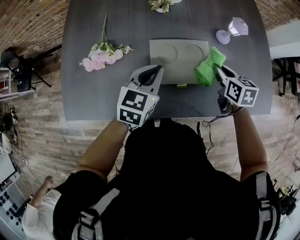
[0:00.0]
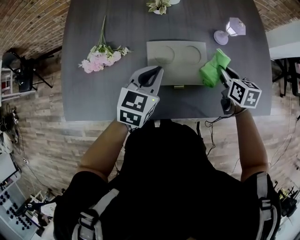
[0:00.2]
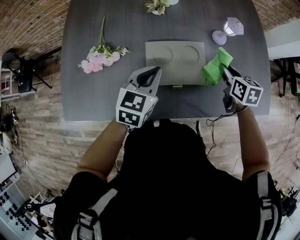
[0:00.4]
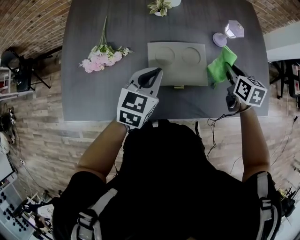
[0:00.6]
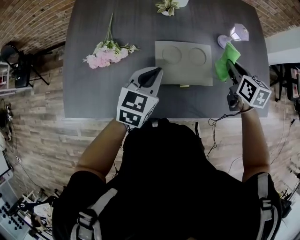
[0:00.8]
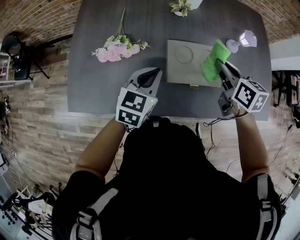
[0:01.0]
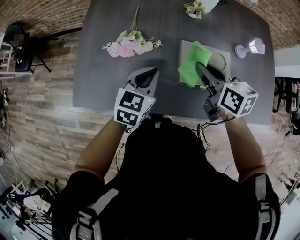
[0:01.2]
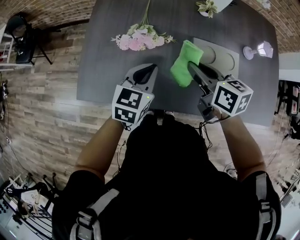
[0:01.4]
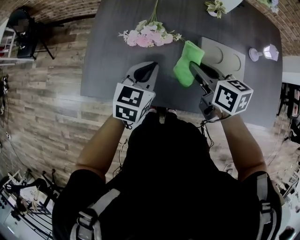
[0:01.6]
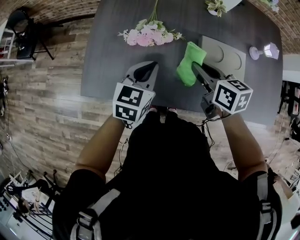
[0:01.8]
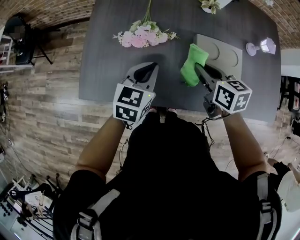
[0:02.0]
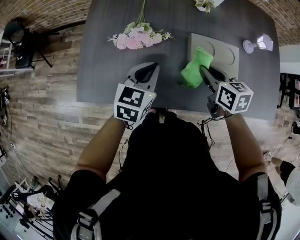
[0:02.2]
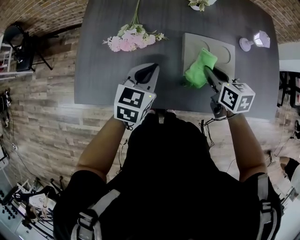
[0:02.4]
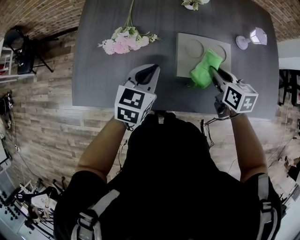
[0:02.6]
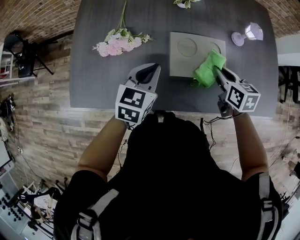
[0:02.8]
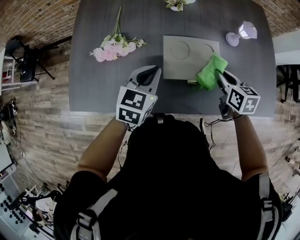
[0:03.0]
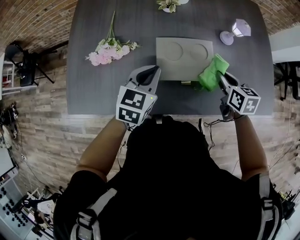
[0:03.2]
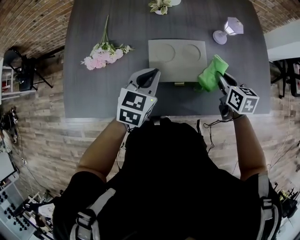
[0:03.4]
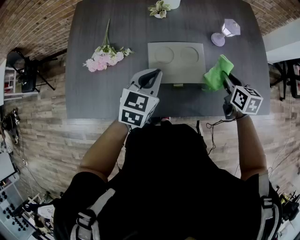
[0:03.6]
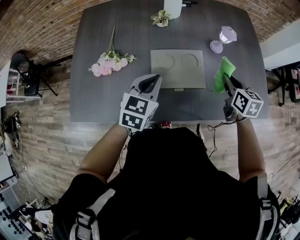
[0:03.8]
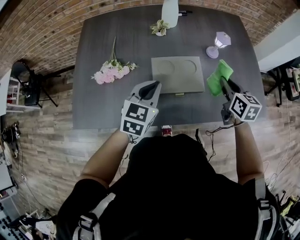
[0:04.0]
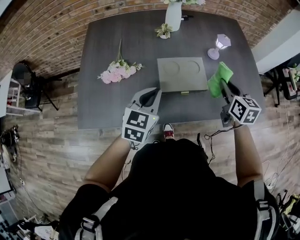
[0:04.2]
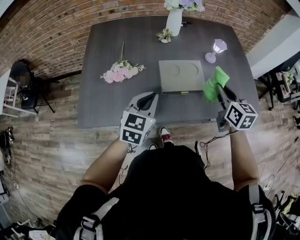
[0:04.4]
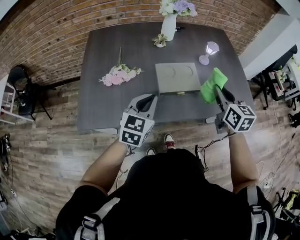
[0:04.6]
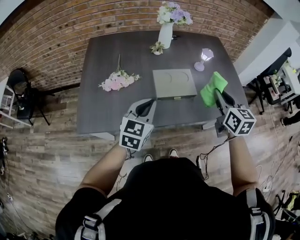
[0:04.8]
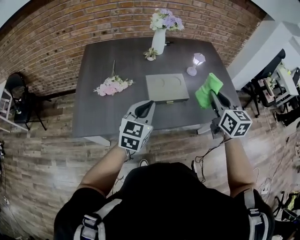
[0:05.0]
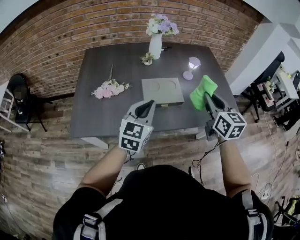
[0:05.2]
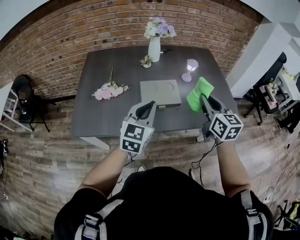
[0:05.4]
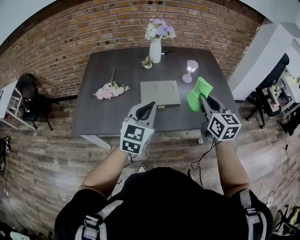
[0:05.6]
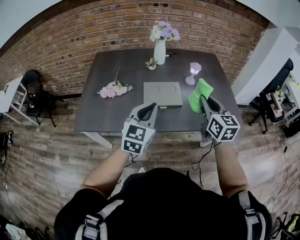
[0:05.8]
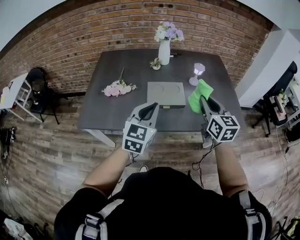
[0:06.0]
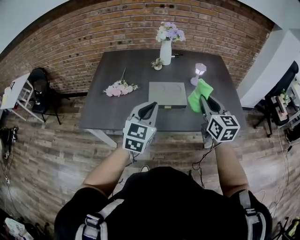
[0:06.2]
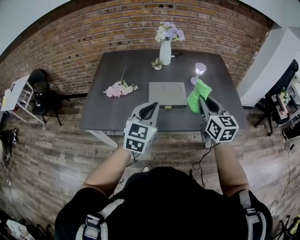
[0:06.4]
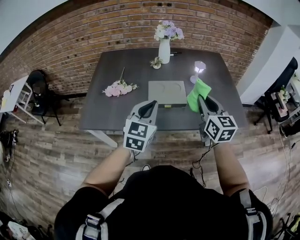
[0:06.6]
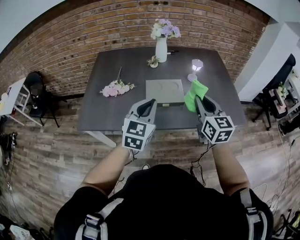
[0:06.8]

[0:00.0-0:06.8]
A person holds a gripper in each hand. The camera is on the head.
0:00.0 to 0:01.4: The left gripper moves to the left, some 15 cm, while the right gripper heads to the left, covering approximately 30 cm, and turns by roughly 20 degrees.
0:01.4 to 0:02.8: The right gripper moves to the right, about 20 cm. Meanwhile the left gripper heads to the right, covering some 10 cm.
0:02.8 to 0:04.0: The right gripper is displaced to the right and upward by roughly 15 cm. Meanwhile the left gripper travels to the right and upward by some 10 cm.
0:04.0 to 0:05.4: The left gripper moves backward and upward, approximately 15 cm, while the right gripper is displaced upward and backward by approximately 20 cm.
0:05.4 to 0:06.8: There are only small adjustments of the grippers.

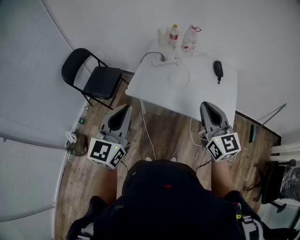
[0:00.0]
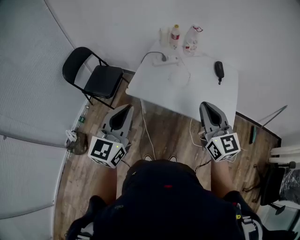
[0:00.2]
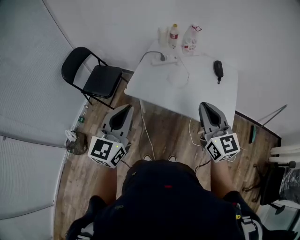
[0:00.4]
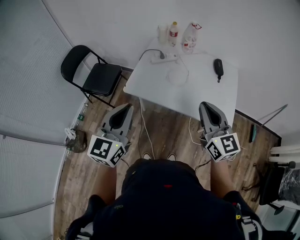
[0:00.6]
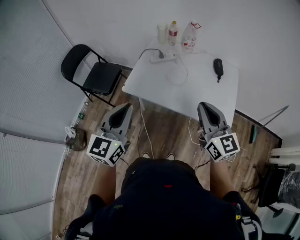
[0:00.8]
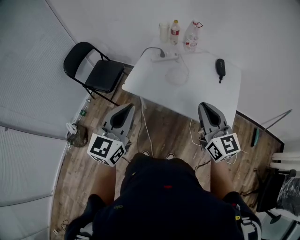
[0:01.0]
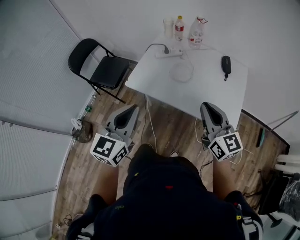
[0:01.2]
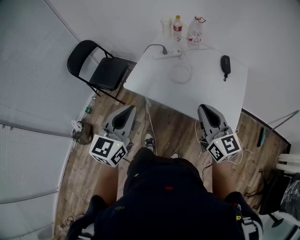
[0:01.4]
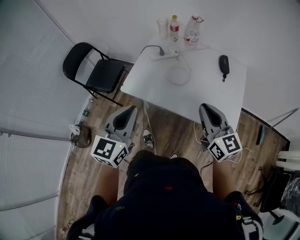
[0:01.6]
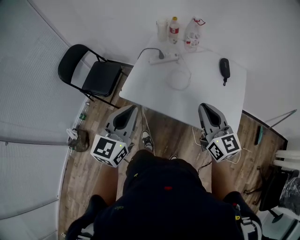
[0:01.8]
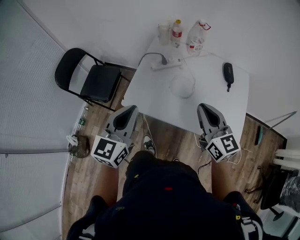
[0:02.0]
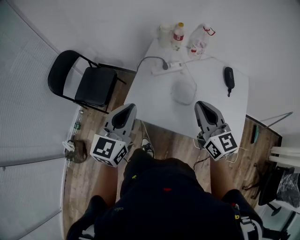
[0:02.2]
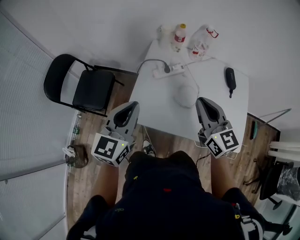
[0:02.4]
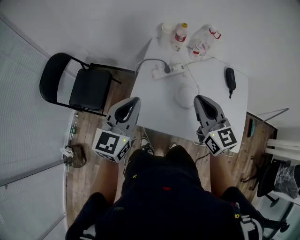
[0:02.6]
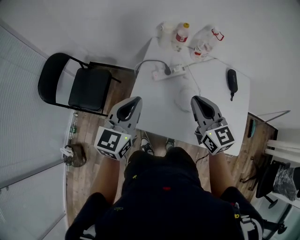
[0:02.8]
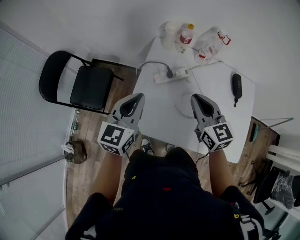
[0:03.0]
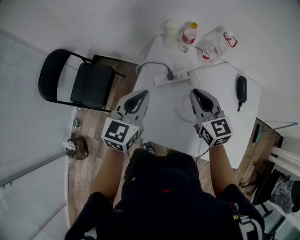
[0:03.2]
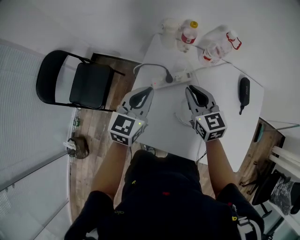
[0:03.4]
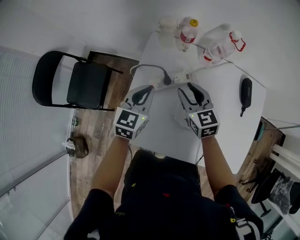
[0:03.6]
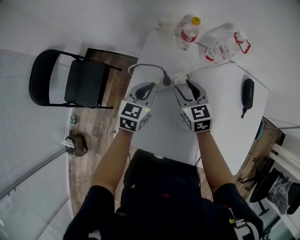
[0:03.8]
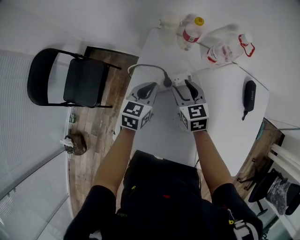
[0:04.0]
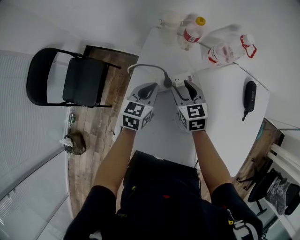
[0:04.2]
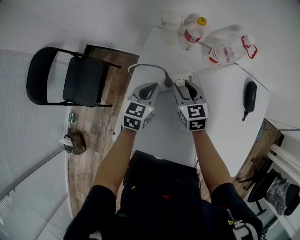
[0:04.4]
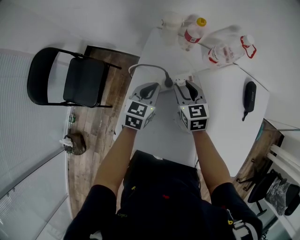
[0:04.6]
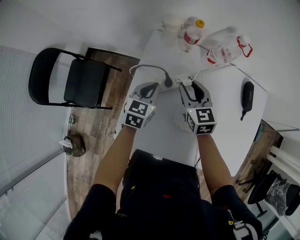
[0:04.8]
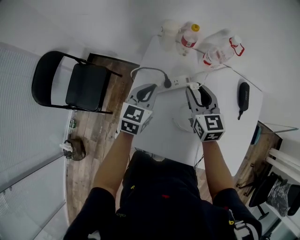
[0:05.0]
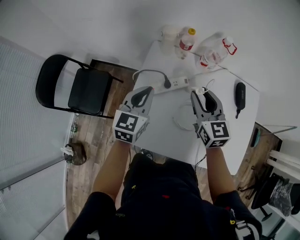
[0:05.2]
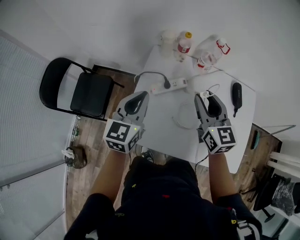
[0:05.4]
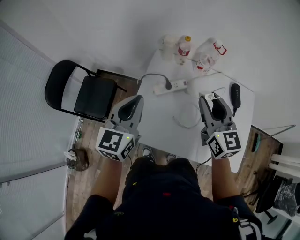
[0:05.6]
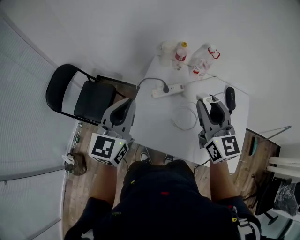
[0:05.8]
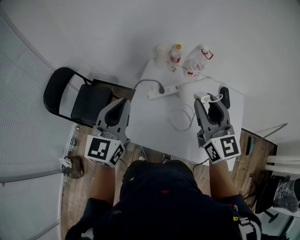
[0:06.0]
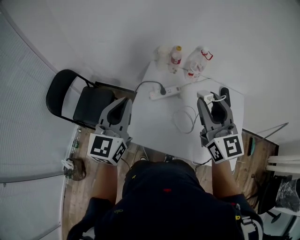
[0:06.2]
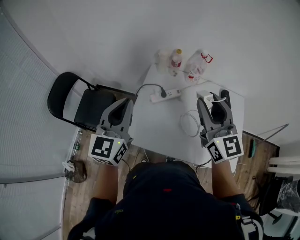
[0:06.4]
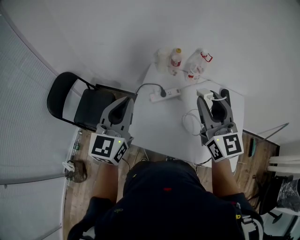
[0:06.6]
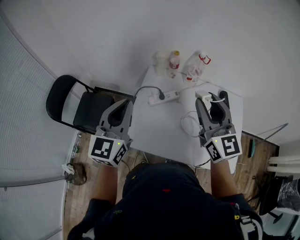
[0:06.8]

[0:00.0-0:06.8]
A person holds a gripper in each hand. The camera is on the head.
0:00.0 to 0:01.4: The right gripper is displaced to the right and downward by some 10 cm; the left gripper travels to the right by approximately 10 cm.
0:01.4 to 0:02.8: The right gripper is displaced forward and to the left by approximately 30 cm, while the left gripper heads forward, covering roughly 30 cm.
0:02.8 to 0:04.0: The grippers both shift downward and forward by approximately 30 cm. The left gripper swivels roughly 20 degrees; the right gripper turns by approximately 20 degrees, and opens its fingers.
0:04.0 to 0:05.4: Both grippers travel together upward and backward, some 25 cm. The right gripper changes its angle by roughly 20 degrees.
0:05.4 to 0:06.8: The two grippers go some 15 cm upward and backward.

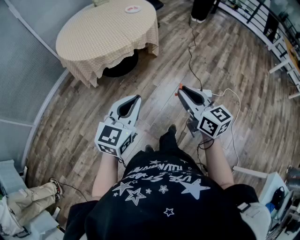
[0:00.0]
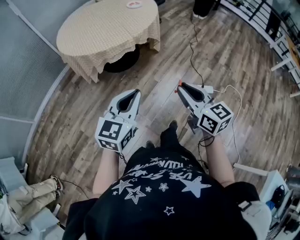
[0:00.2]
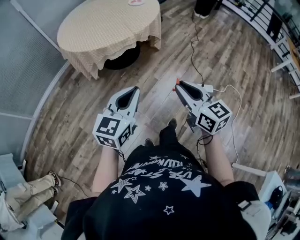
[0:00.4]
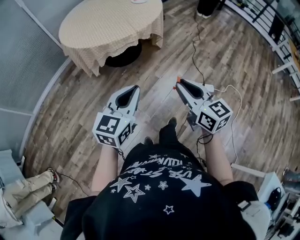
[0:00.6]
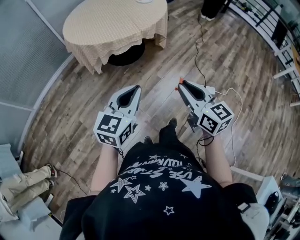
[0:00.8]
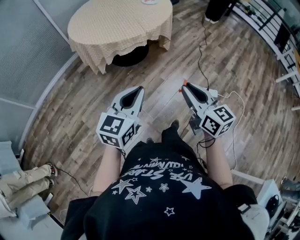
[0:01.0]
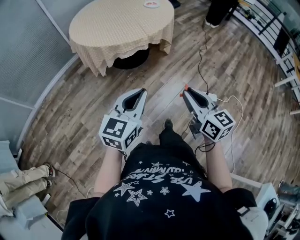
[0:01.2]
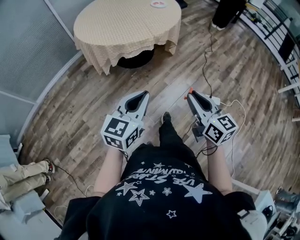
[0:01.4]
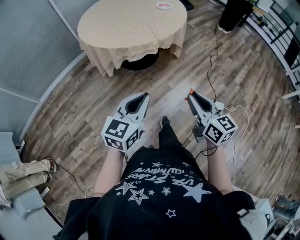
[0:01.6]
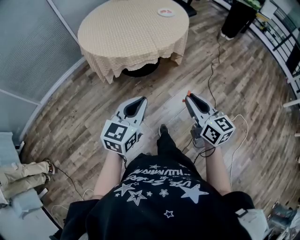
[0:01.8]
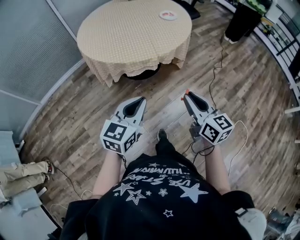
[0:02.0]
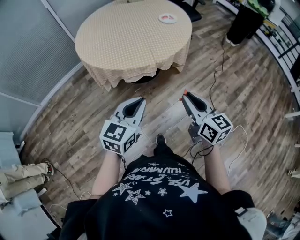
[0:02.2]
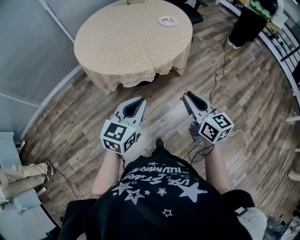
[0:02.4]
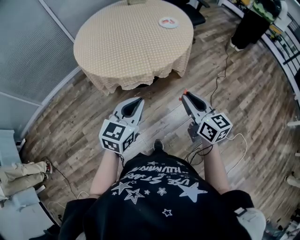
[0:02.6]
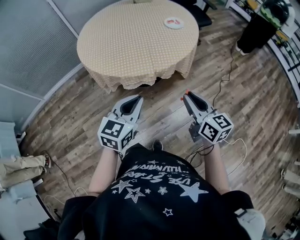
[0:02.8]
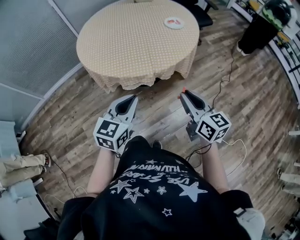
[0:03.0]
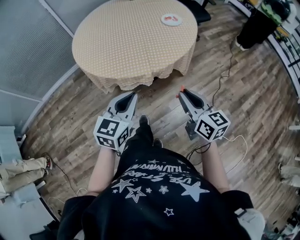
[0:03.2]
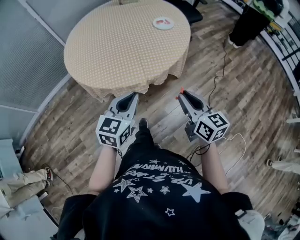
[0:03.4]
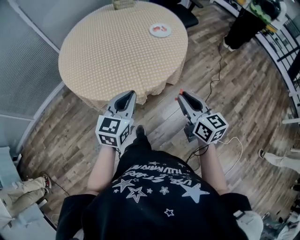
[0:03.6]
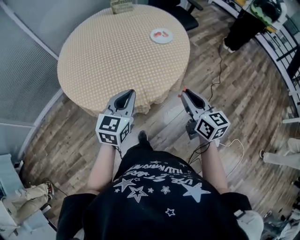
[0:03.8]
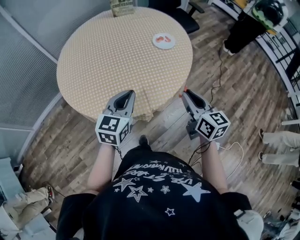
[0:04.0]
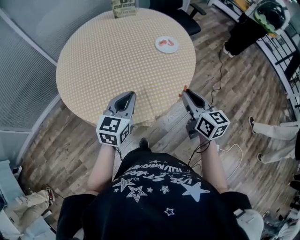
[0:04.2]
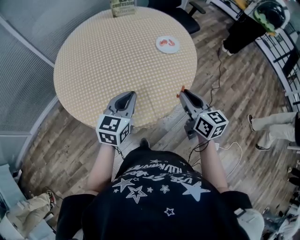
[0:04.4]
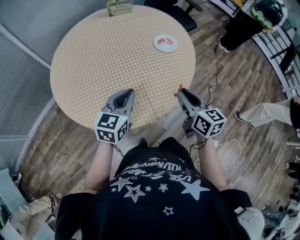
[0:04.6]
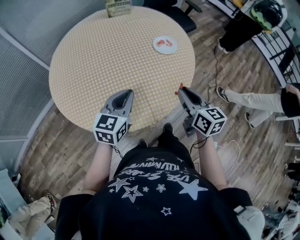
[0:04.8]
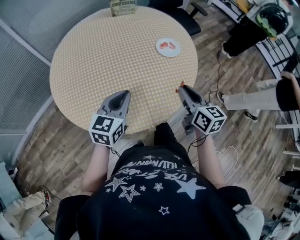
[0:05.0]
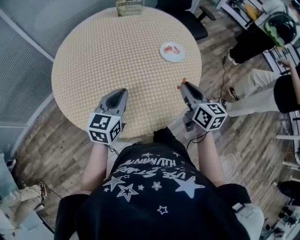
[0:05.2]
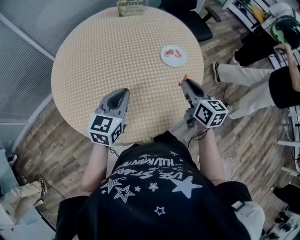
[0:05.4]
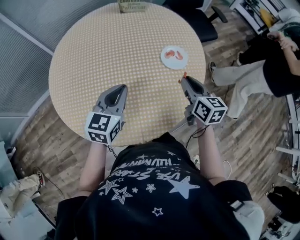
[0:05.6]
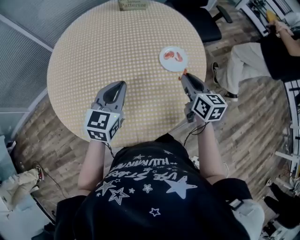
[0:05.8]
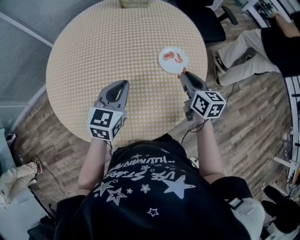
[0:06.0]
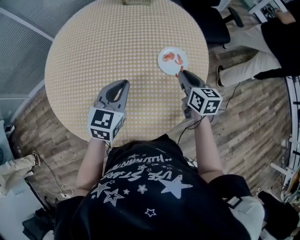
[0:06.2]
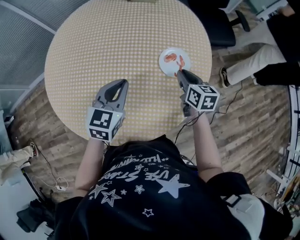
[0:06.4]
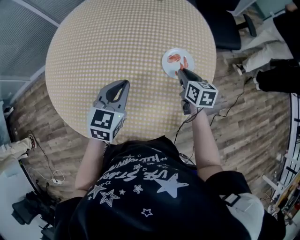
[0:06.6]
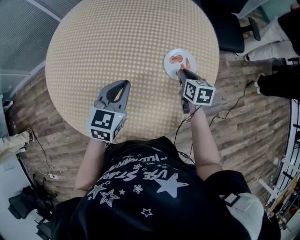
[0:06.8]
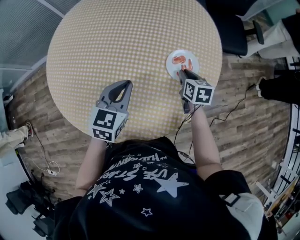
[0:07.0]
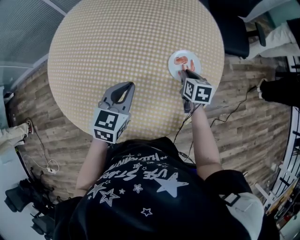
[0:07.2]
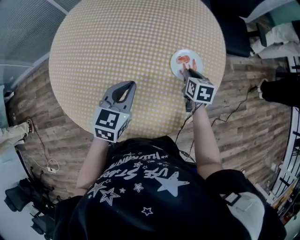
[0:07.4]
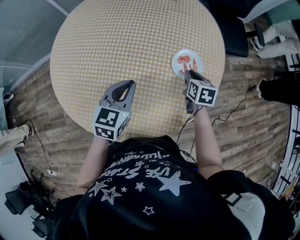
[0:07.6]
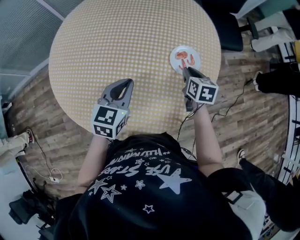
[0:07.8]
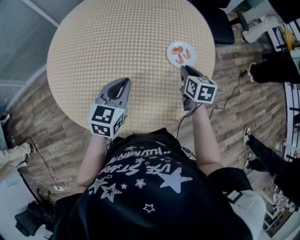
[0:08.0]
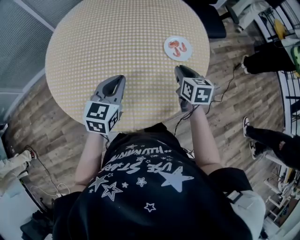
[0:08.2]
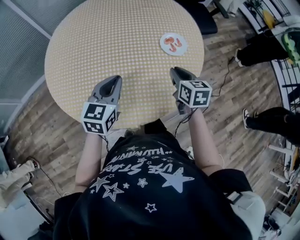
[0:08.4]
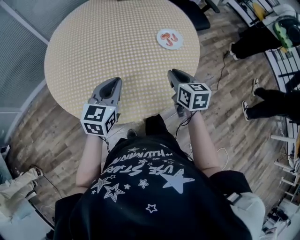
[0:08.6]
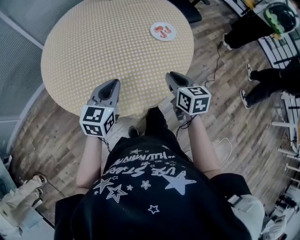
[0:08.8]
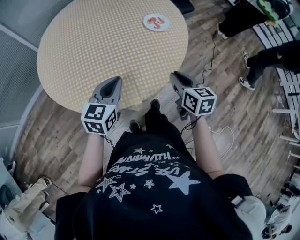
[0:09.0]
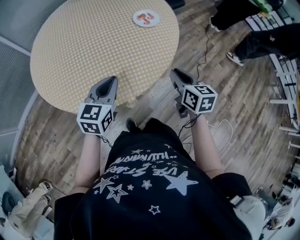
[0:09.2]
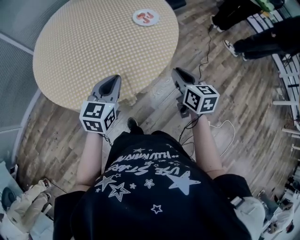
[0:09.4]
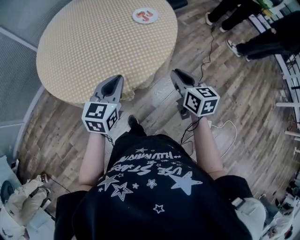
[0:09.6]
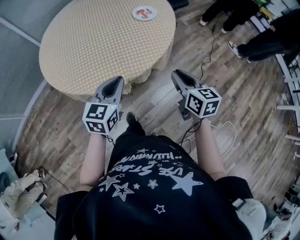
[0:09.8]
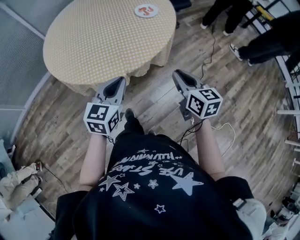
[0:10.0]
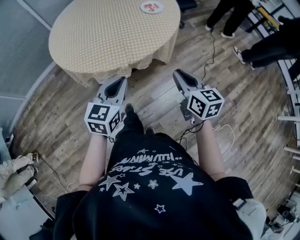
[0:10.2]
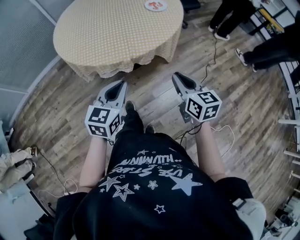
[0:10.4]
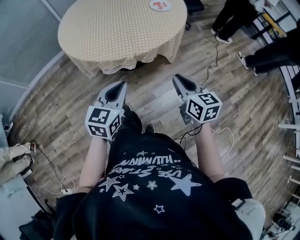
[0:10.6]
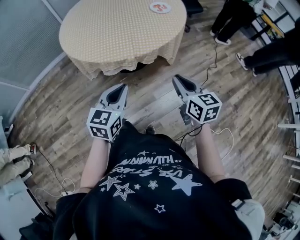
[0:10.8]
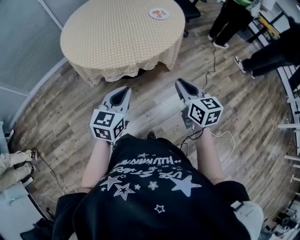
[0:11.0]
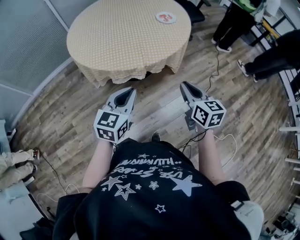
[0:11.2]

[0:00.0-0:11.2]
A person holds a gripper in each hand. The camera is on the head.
0:00.0 to 0:01.6: The right gripper shifts about 5 cm forward. The left gripper changes place by approximately 5 cm.
0:01.6 to 0:03.2: The grippers both shift forward by roughly 30 cm.
0:03.2 to 0:04.8: The grippers both shift forward by about 30 cm.
0:04.8 to 0:06.4: The right gripper goes roughly 35 cm forward and downward, and changes its angle by roughly 20 degrees, while the left gripper travels forward and to the right by about 20 cm, and swivels about 20 degrees.
0:06.4 to 0:08.0: The left gripper travels to the left by about 5 cm.
0:08.0 to 0:09.6: The right gripper moves backward, about 35 cm. Meanwhile the left gripper goes roughly 25 cm backward.
0:09.6 to 0:11.2: The grippers both shift backward by about 20 cm.
